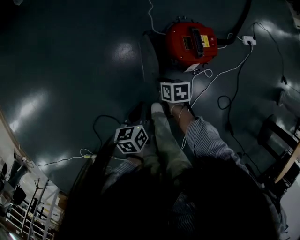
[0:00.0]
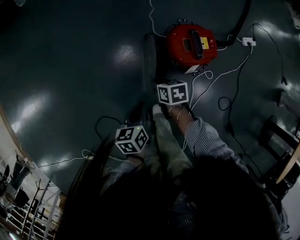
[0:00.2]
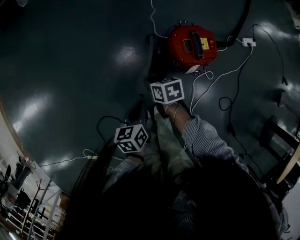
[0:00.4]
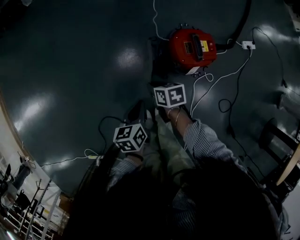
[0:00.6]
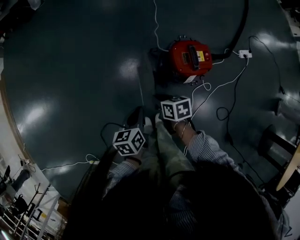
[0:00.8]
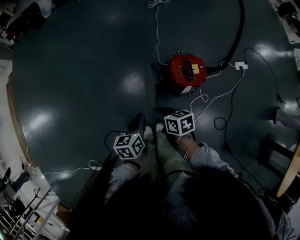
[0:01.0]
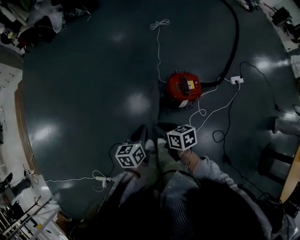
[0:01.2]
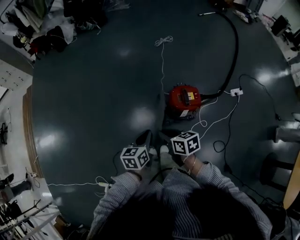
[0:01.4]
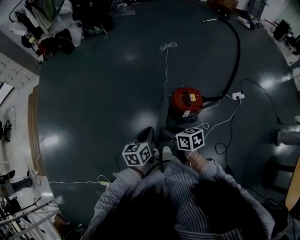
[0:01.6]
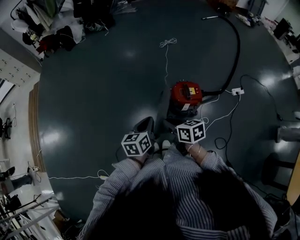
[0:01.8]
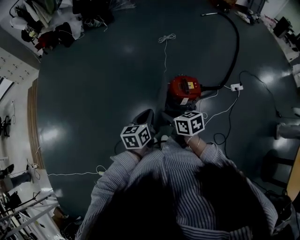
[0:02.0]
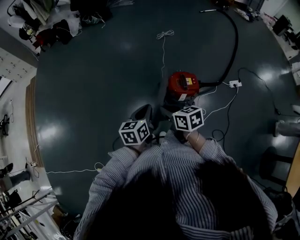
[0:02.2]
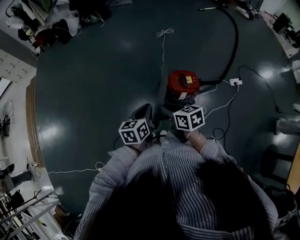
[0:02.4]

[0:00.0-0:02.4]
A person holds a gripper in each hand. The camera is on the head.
0:00.0 to 0:01.2: Both grippers move upward, about 30 cm. The right gripper swivels some 30 degrees.
0:01.2 to 0:02.4: The left gripper moves upward, approximately 15 cm, while the right gripper shifts approximately 15 cm upward and backward.

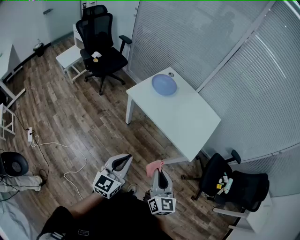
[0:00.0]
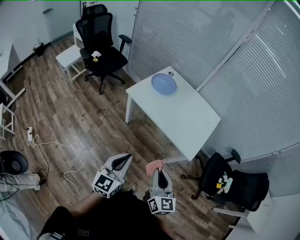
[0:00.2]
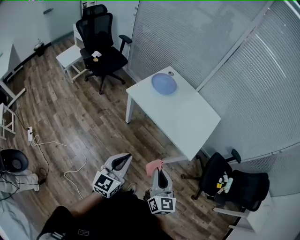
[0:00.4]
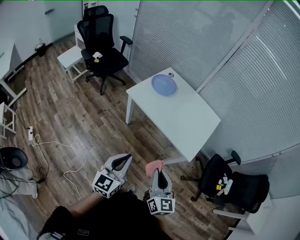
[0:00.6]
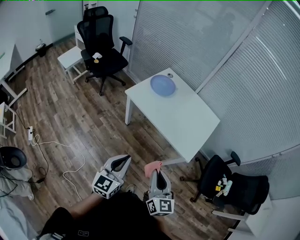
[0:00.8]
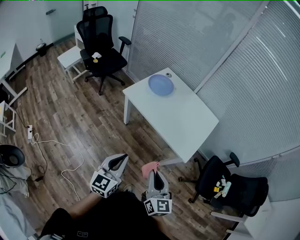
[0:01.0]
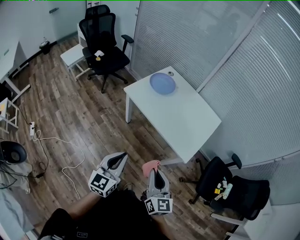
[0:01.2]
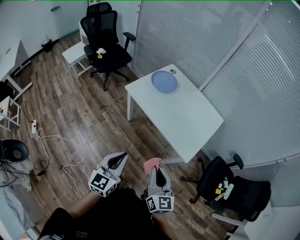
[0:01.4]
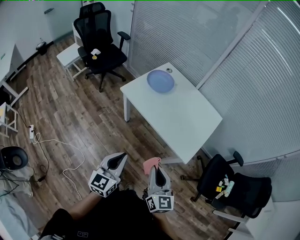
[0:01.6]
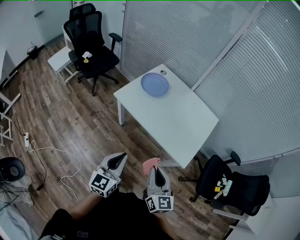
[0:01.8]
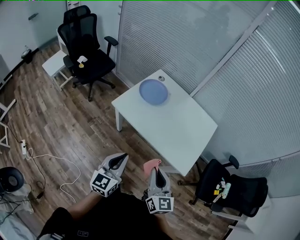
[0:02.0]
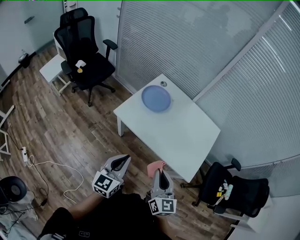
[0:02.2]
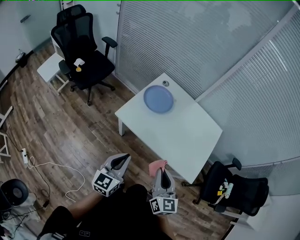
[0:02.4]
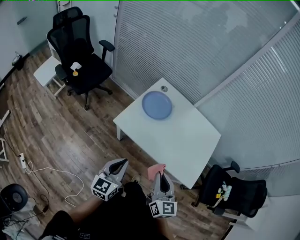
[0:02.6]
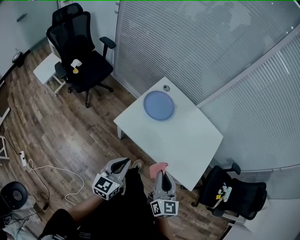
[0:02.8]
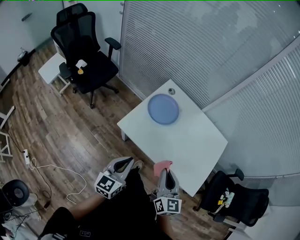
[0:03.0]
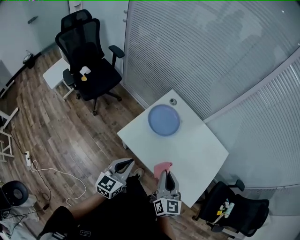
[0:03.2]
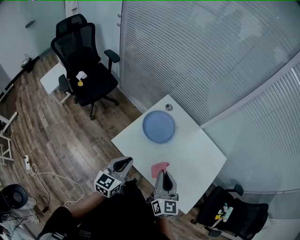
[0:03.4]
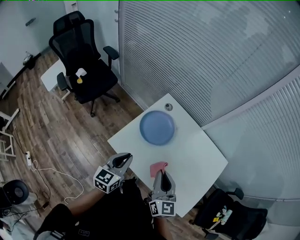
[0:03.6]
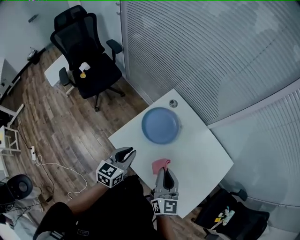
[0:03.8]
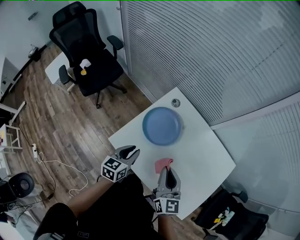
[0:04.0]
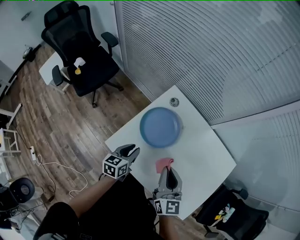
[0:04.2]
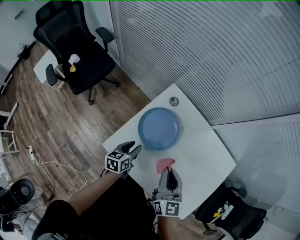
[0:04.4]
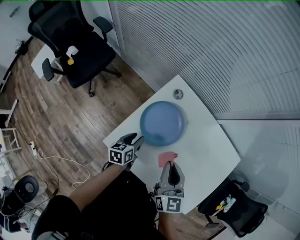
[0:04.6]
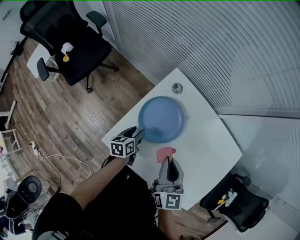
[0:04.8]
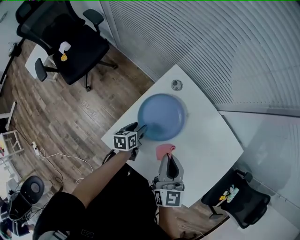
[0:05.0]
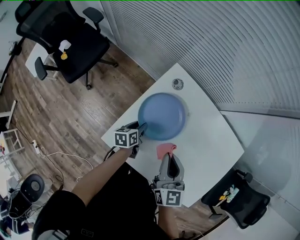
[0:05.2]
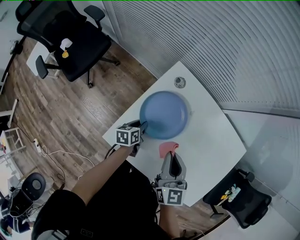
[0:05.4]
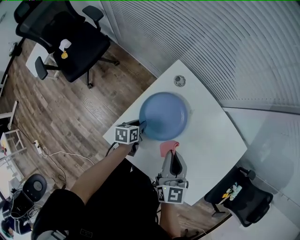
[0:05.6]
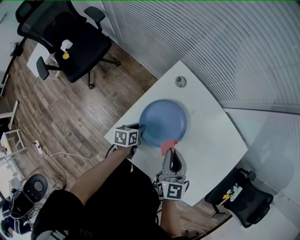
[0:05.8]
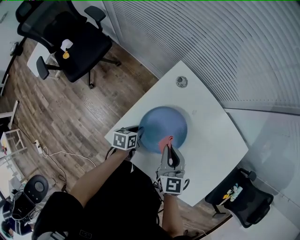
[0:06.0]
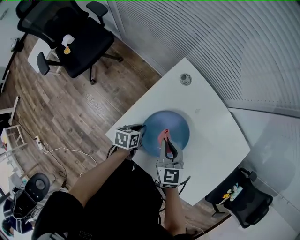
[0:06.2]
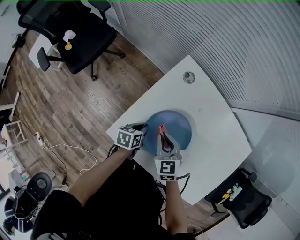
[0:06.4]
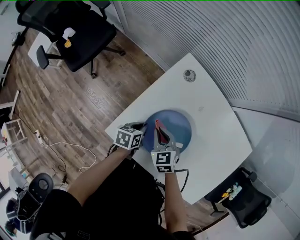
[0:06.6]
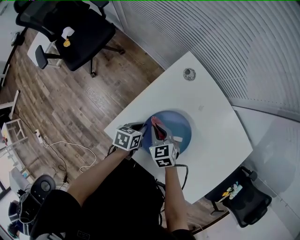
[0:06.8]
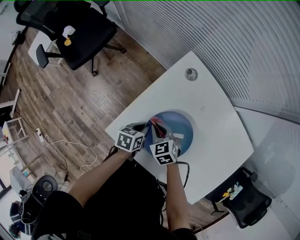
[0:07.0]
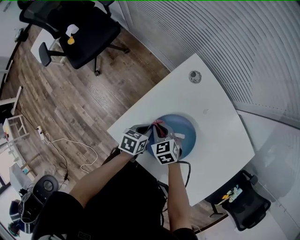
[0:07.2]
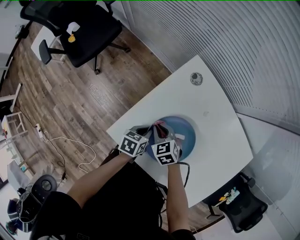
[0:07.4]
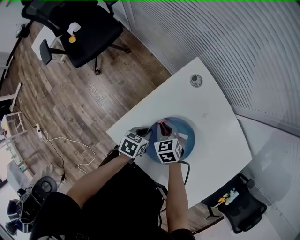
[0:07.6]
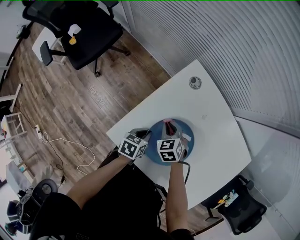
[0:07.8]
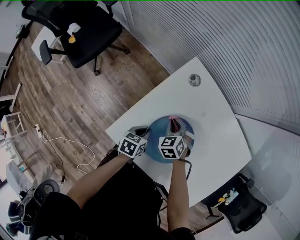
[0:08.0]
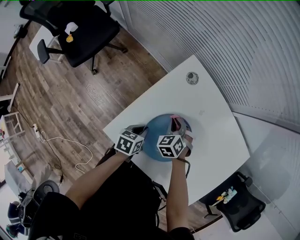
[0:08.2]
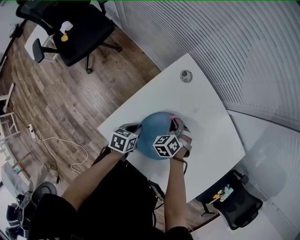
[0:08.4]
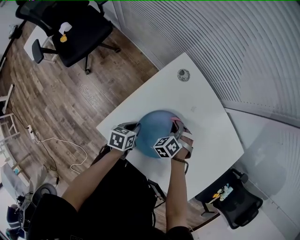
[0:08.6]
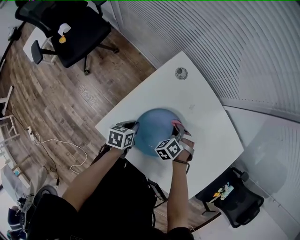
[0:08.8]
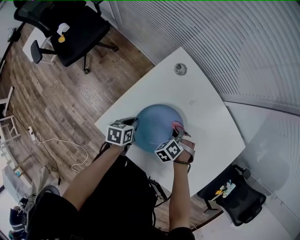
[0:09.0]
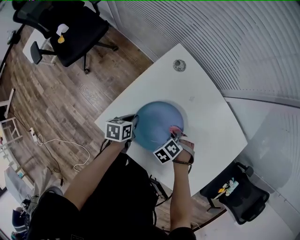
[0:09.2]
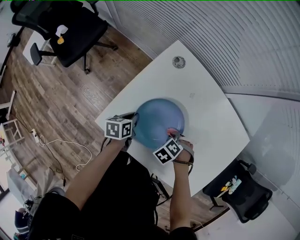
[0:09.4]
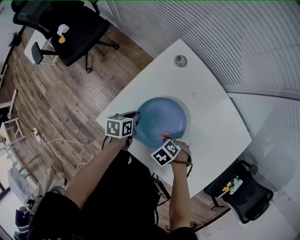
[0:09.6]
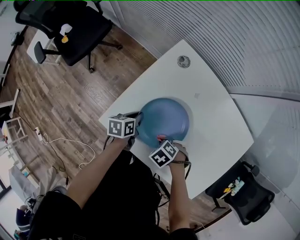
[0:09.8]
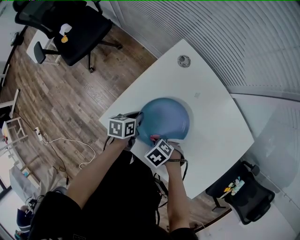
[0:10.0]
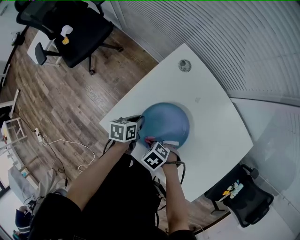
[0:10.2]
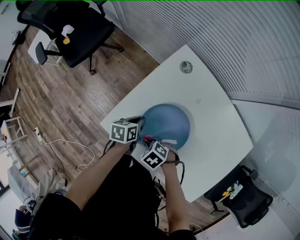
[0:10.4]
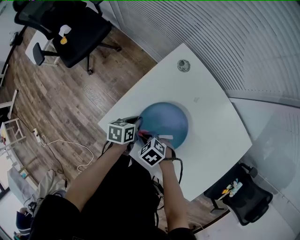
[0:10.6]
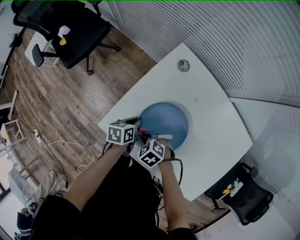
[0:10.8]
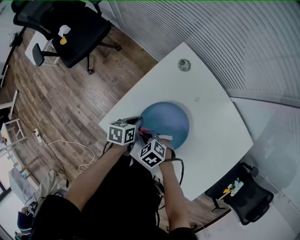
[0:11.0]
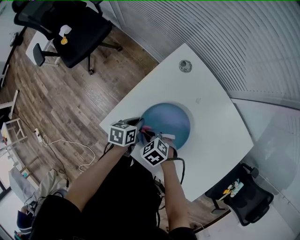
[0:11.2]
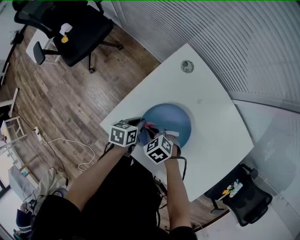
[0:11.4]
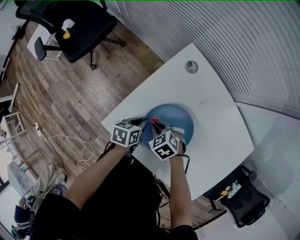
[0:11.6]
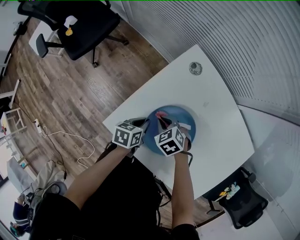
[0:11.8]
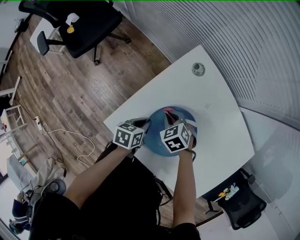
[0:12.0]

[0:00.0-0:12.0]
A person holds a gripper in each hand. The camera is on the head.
0:00.0 to 0:01.6: The right gripper moves to the right and forward, about 10 cm. Meanwhile the left gripper travels to the right by some 5 cm.
0:01.6 to 0:03.0: The two grippers go roughly 30 cm forward and to the left.
0:03.0 to 0:04.4: The right gripper heads forward, covering roughly 25 cm; the left gripper shifts approximately 35 cm forward and downward, changes its angle by roughly 30 degrees, and opens.
0:04.4 to 0:06.0: Both grippers travel together downward, about 10 cm. The left gripper closes.
0:06.0 to 0:07.6: The right gripper moves downward and to the left, about 20 cm, and turns by roughly 40 degrees.
0:07.6 to 0:09.0: The right gripper shifts by roughly 15 cm, and swivels approximately 40 degrees.
0:09.0 to 0:10.4: The right gripper ends up roughly 20 cm from where it was, and changes its angle by about 40 degrees.
0:10.4 to 0:12.0: The right gripper ends up about 15 cm from where it was, and swivels approximately 20 degrees.

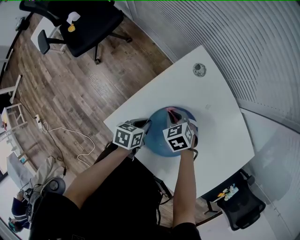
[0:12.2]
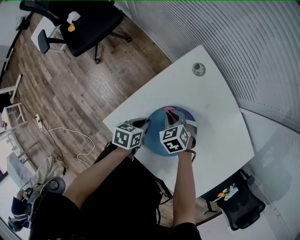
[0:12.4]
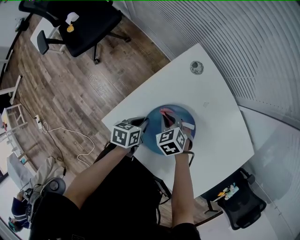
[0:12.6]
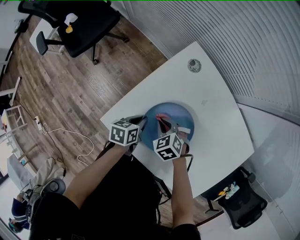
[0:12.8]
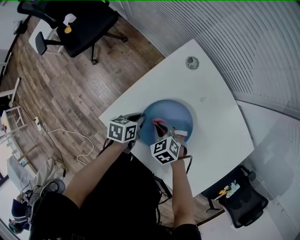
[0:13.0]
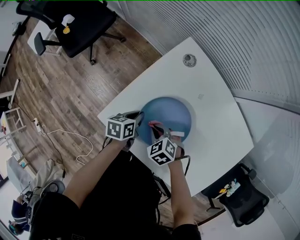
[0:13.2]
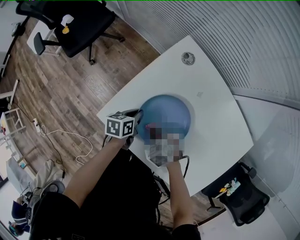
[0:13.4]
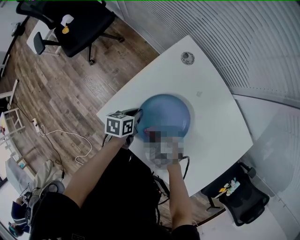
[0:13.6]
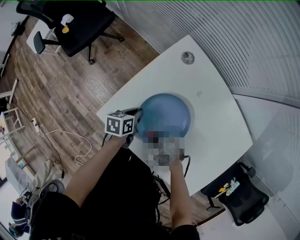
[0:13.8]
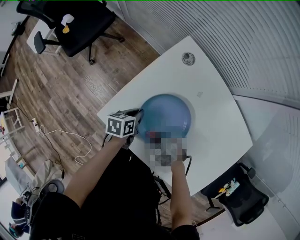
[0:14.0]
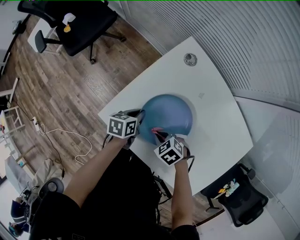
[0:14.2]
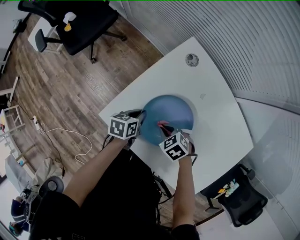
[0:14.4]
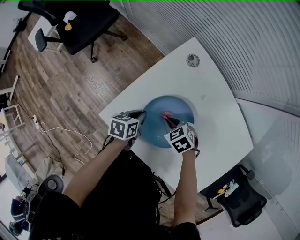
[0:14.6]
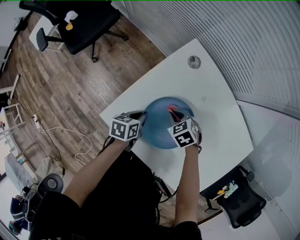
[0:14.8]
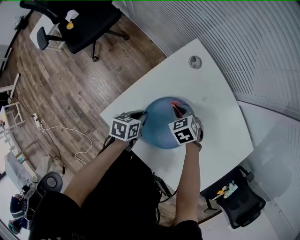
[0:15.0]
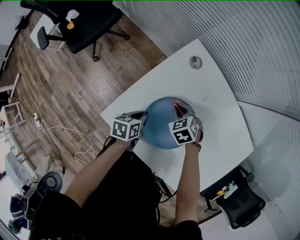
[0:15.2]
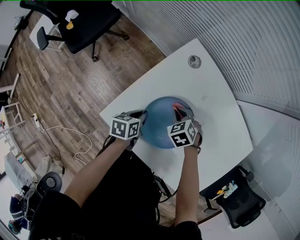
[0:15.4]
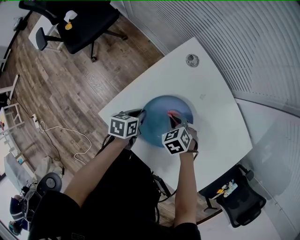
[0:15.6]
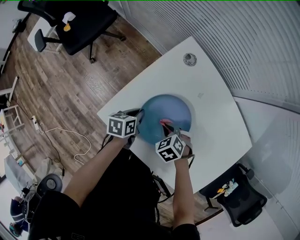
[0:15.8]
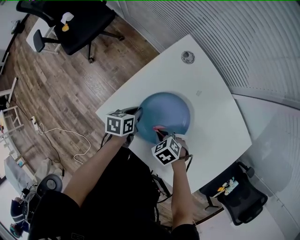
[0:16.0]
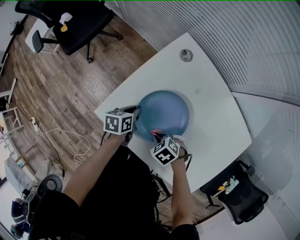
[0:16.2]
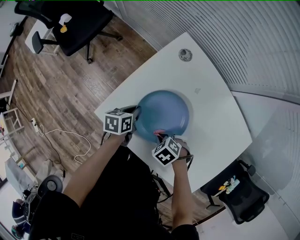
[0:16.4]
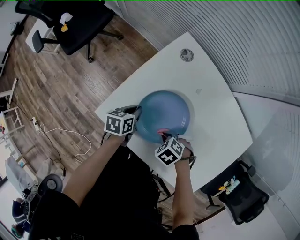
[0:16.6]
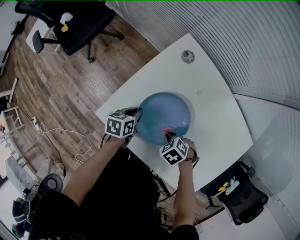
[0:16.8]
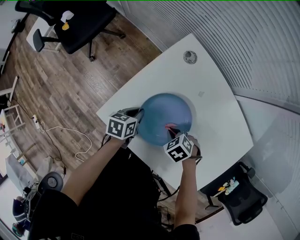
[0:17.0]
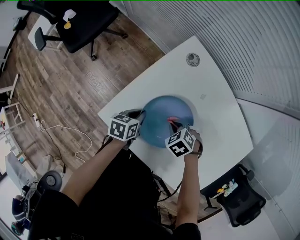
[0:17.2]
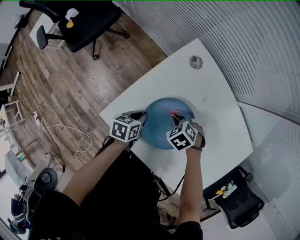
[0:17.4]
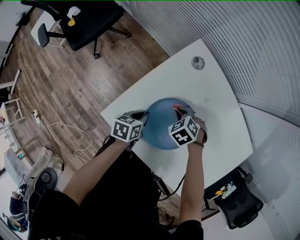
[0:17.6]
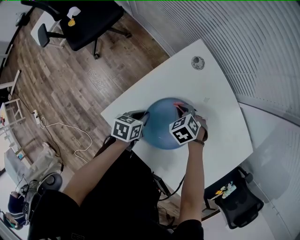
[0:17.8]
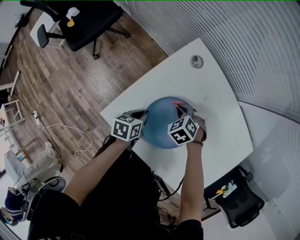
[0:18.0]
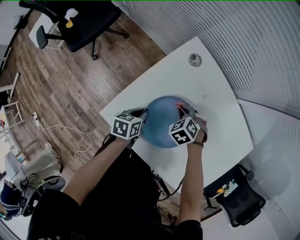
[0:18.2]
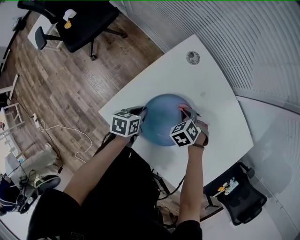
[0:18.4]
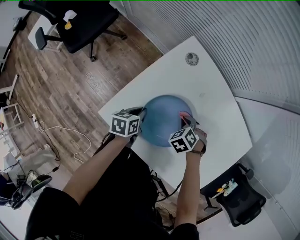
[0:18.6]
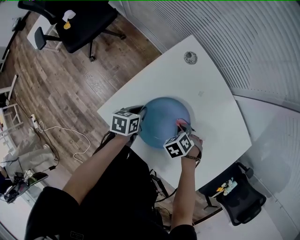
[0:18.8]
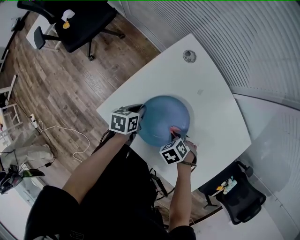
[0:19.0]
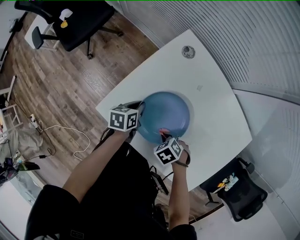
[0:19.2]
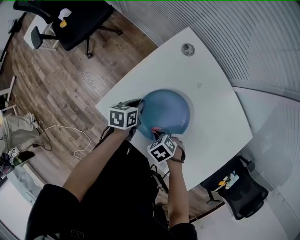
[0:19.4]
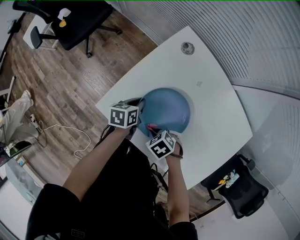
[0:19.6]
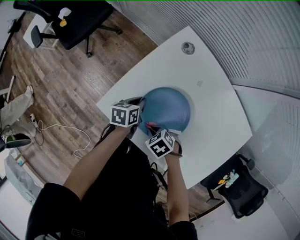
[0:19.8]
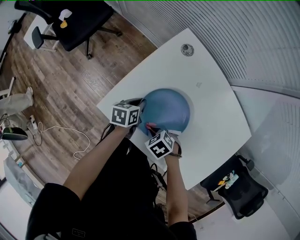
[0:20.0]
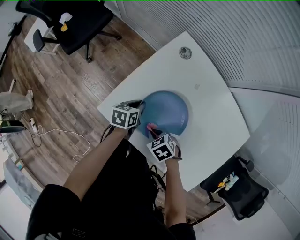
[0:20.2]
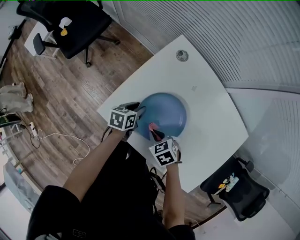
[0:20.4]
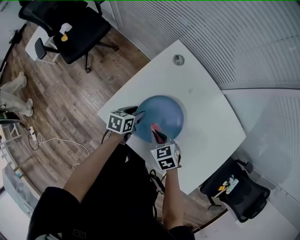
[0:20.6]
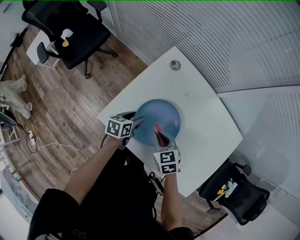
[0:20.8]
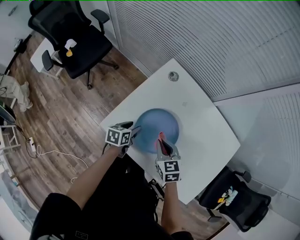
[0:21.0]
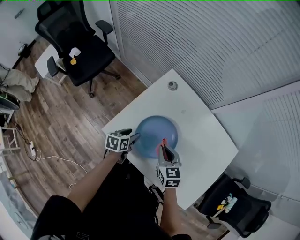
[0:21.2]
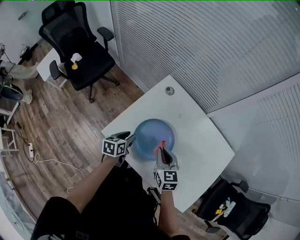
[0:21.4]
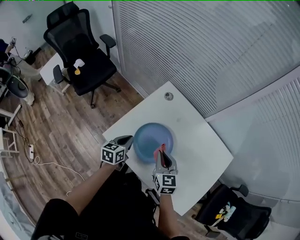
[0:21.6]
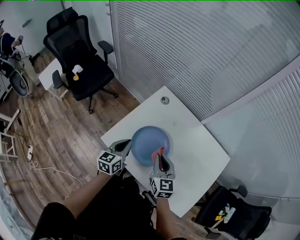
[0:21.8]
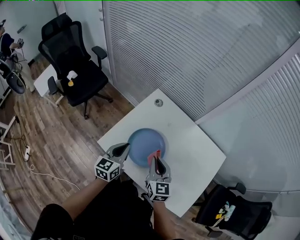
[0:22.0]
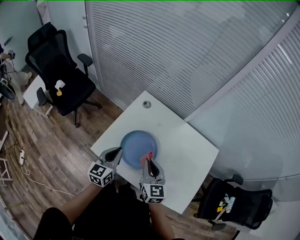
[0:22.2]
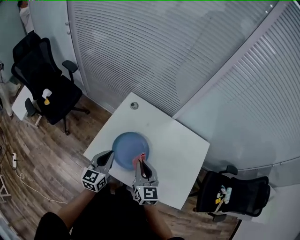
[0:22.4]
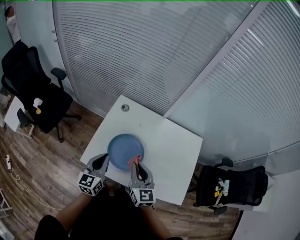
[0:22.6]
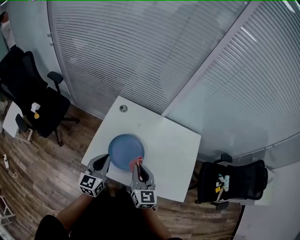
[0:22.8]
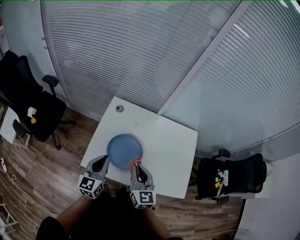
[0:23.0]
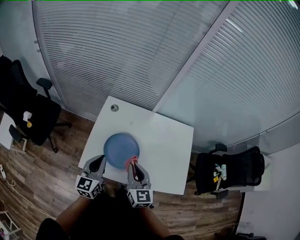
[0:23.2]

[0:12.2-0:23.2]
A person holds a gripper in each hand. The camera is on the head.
0:12.2 to 0:13.8: The right gripper moves about 20 cm, and turns by approximately 20 degrees.
0:13.8 to 0:15.4: The right gripper ends up approximately 20 cm from where it was, and turns by roughly 20 degrees.
0:17.0 to 0:18.4: The right gripper changes place by about 10 cm.
0:18.4 to 0:20.0: The right gripper ends up roughly 20 cm from where it was, and turns by roughly 30 degrees.
0:20.0 to 0:21.6: The left gripper travels upward by approximately 15 cm, rotates about 20 degrees, and opens, then closes once more, while the right gripper is displaced upward by roughly 20 cm, and tips its fingers upward by approximately 40 degrees.
0:21.6 to 0:23.2: The right gripper heads upward and backward, covering about 15 cm, and swivels approximately 30 degrees. Meanwhile the left gripper travels upward by roughly 15 cm, and changes its angle by approximately 40 degrees.
